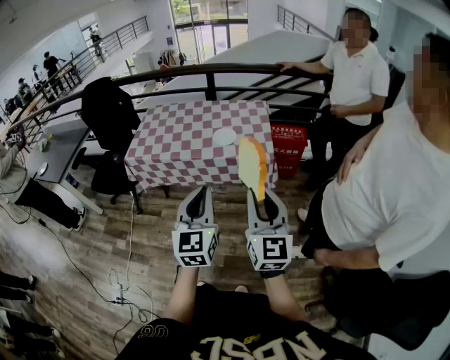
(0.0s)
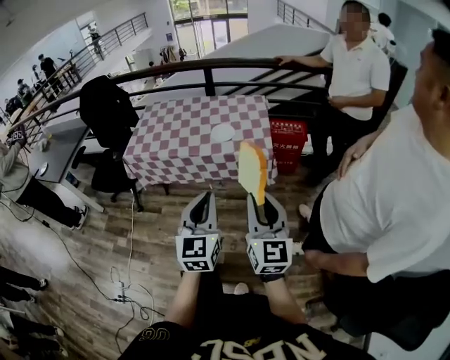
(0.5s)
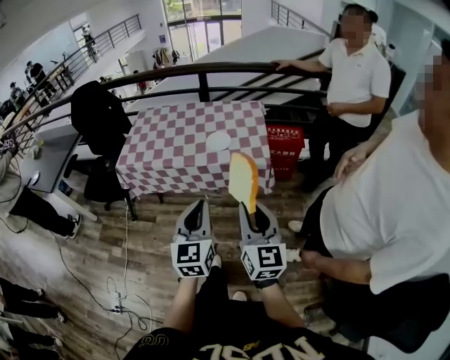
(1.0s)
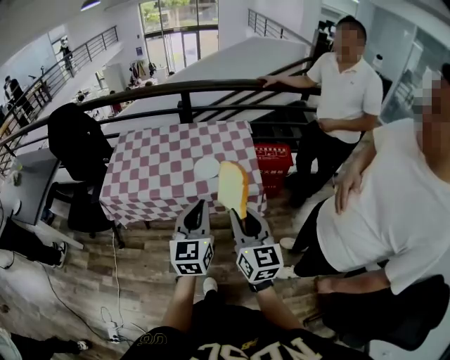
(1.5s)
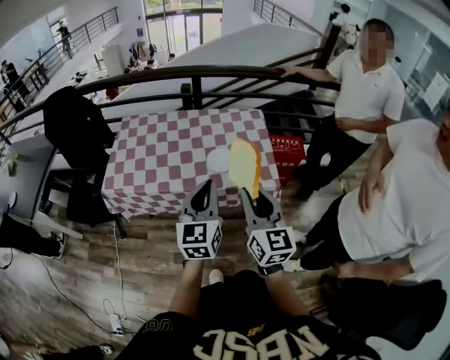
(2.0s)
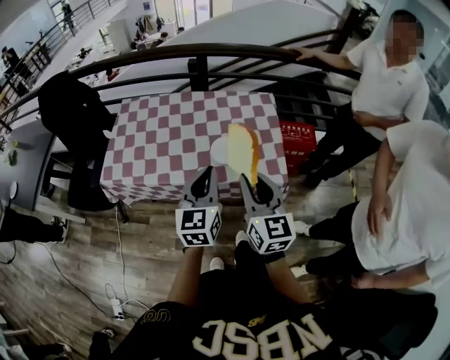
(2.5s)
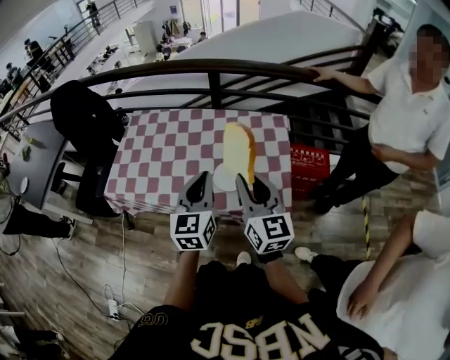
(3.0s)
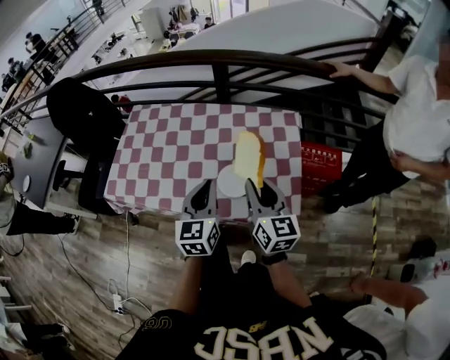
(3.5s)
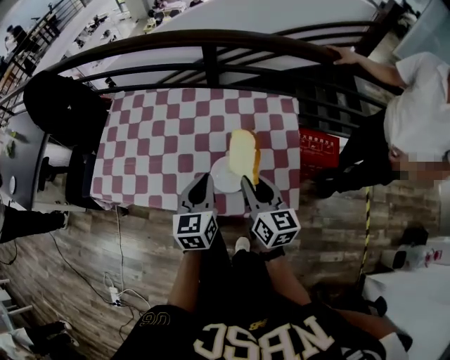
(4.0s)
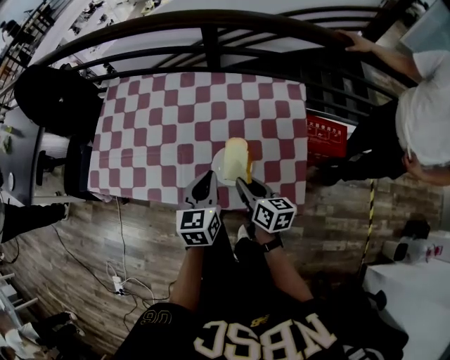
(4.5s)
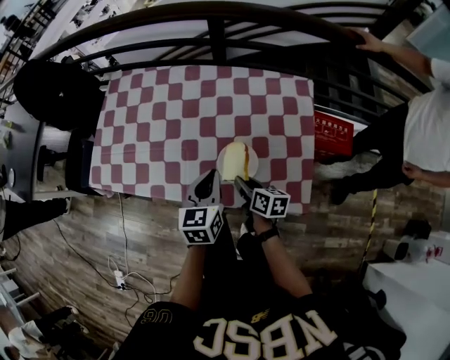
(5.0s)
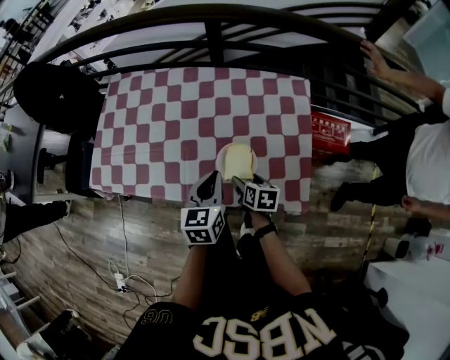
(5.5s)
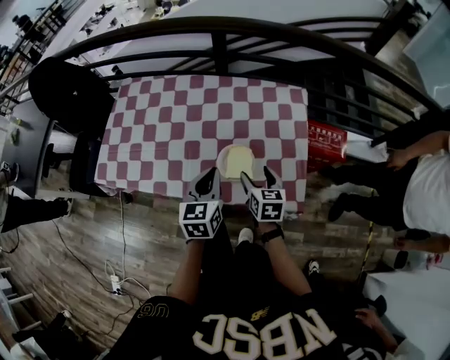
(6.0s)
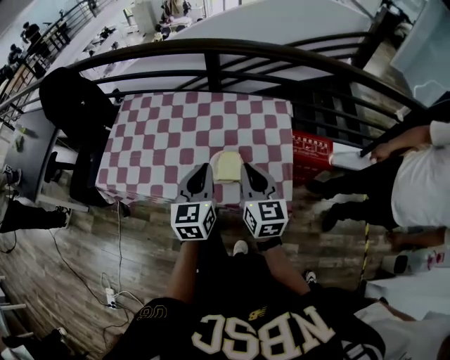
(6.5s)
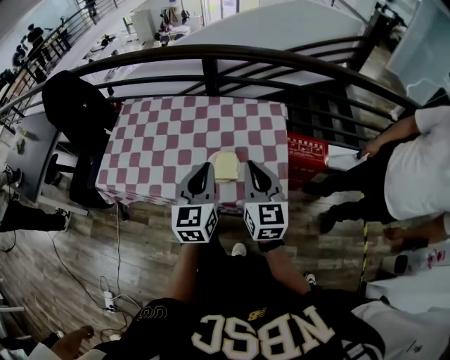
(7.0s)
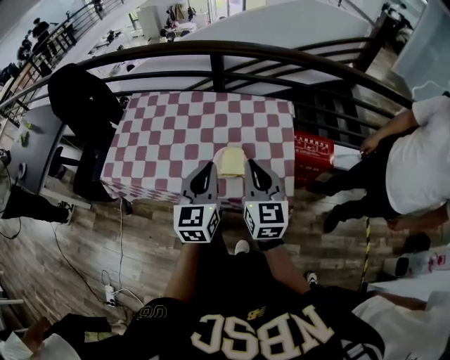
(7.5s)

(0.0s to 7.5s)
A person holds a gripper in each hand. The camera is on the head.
0.0s - 2.0s: The two grippers go some 25 cm forward.
2.0s - 4.0s: The grippers both shift forward and downward by approximately 30 cm. The right gripper swivels about 30 degrees. Meanwhile the left gripper turns by some 20 degrees.
4.0s - 5.5s: The right gripper travels downward by some 25 cm, points its fingers approximately 40 degrees further downward, and opens its fingers, while the left gripper goes some 5 cm downward.
5.5s - 7.5s: The left gripper is displaced upward and backward by approximately 20 cm, and changes its angle by some 20 degrees; the right gripper heads upward, covering some 30 cm, angles its fingers upward, by about 40 degrees, and closes up.

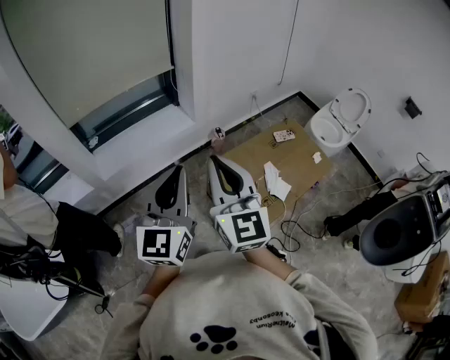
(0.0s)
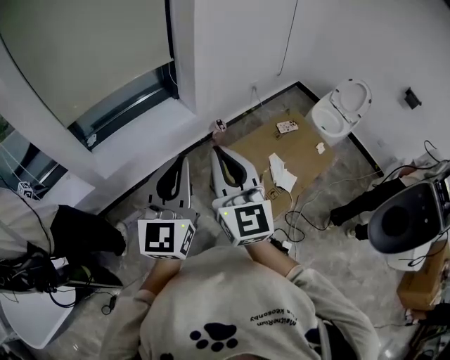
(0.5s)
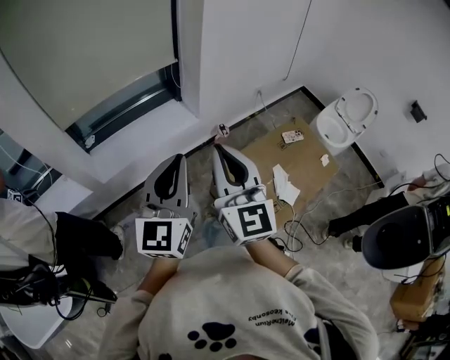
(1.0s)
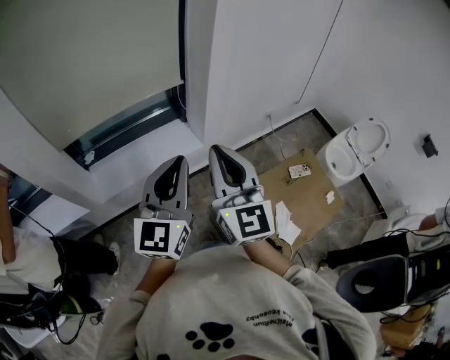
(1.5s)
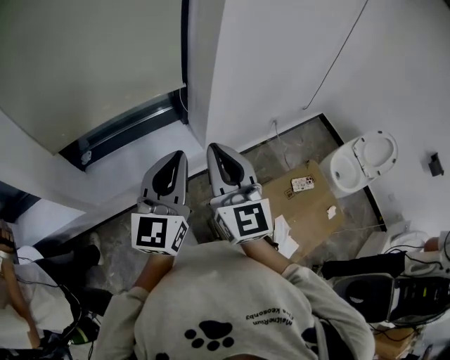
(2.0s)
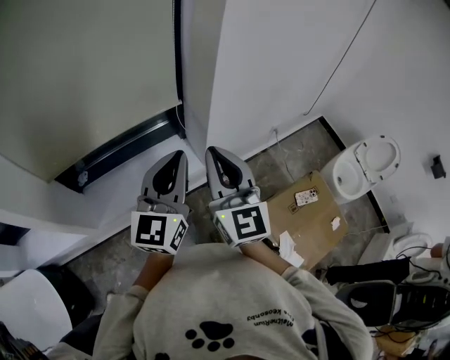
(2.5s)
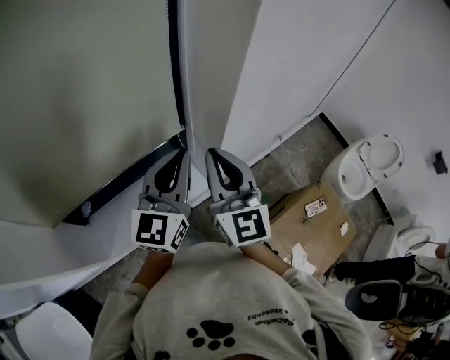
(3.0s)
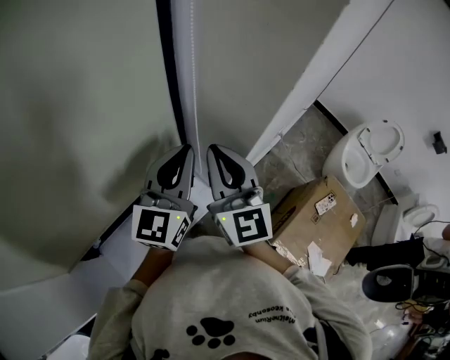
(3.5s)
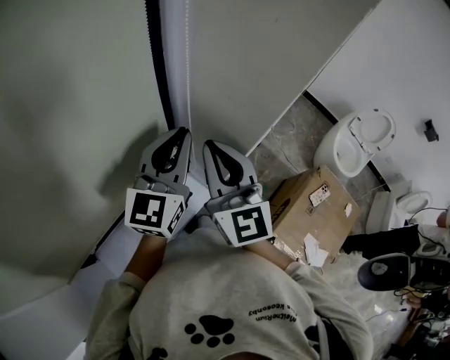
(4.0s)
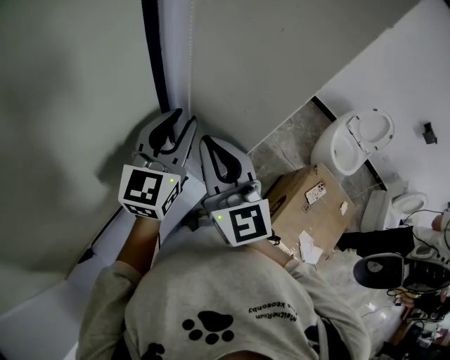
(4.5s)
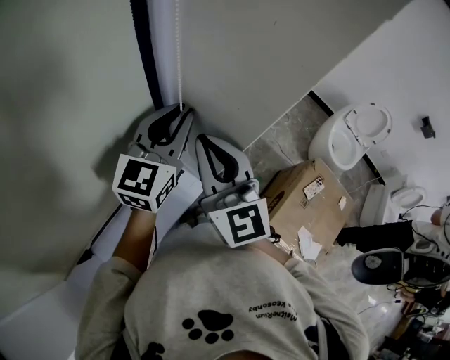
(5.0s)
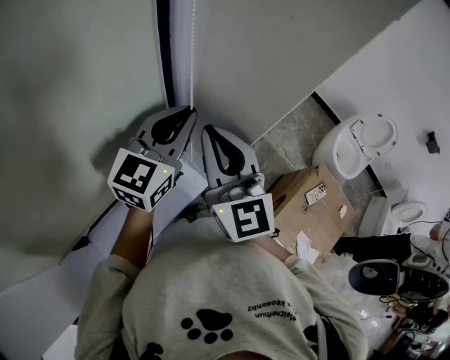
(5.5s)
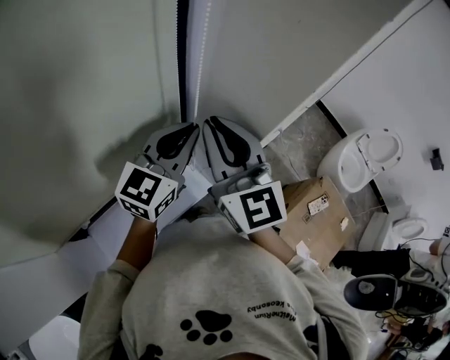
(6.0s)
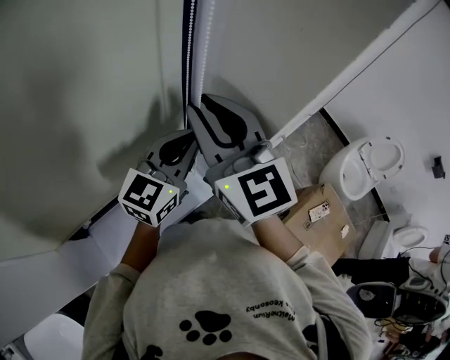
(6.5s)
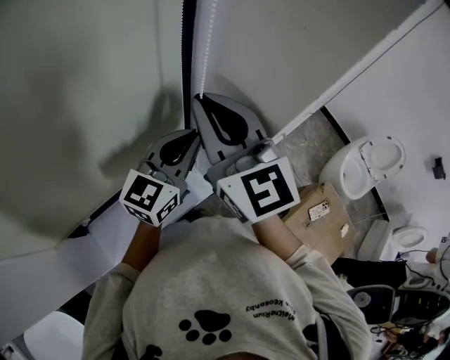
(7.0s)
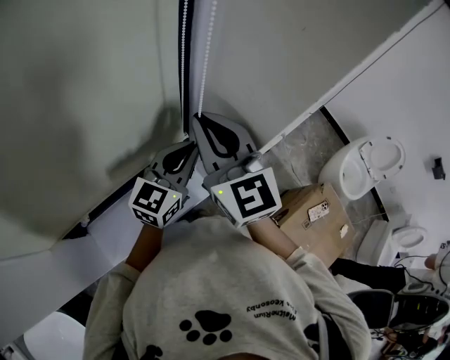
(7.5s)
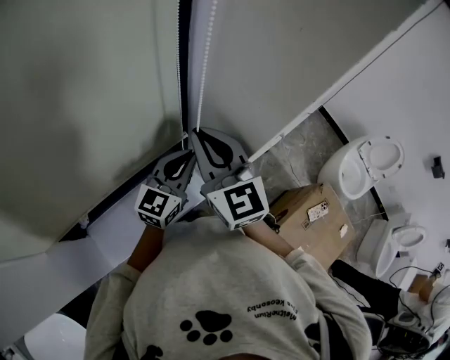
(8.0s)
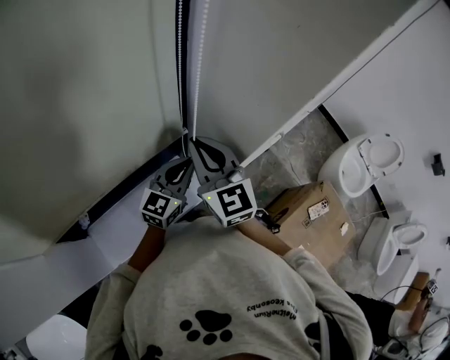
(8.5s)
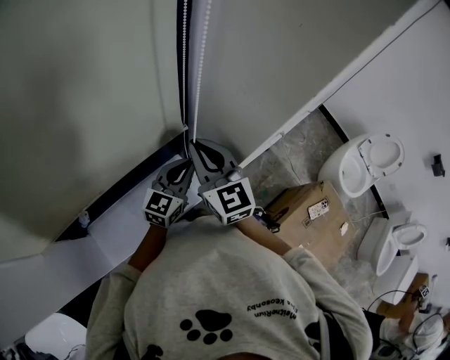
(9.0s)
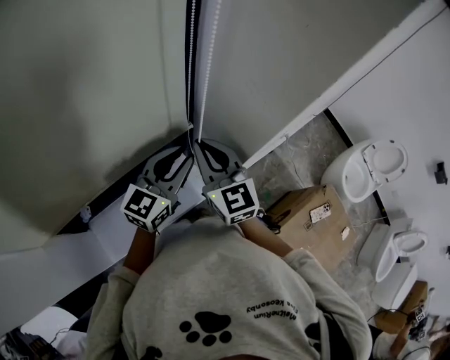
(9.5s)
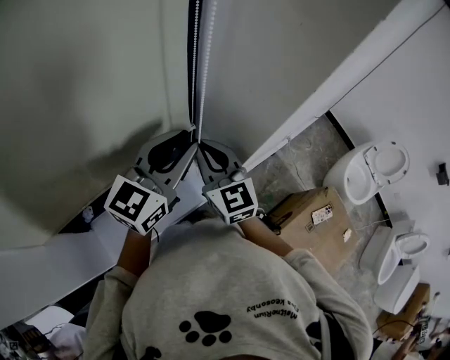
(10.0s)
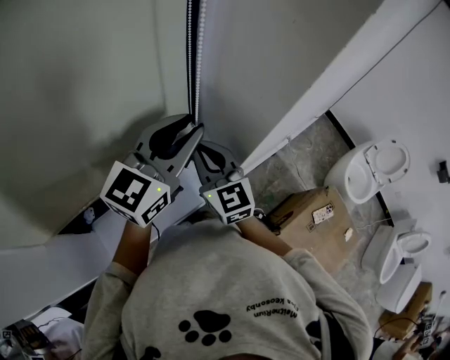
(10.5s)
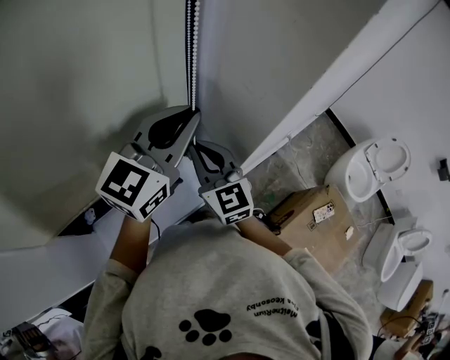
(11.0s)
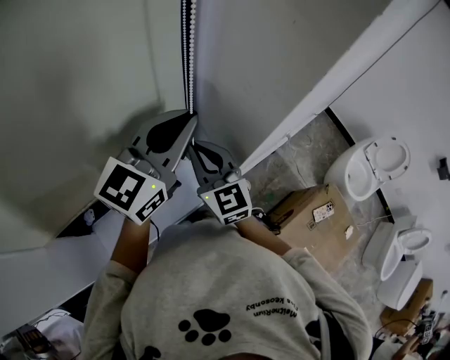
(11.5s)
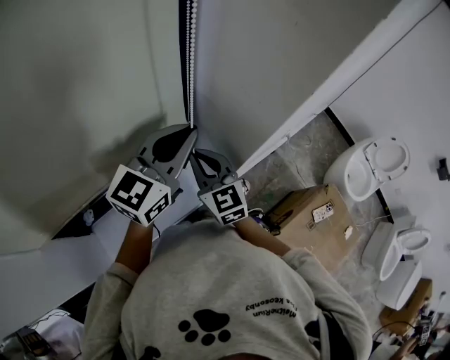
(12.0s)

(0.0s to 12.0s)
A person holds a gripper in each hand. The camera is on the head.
0.0s - 2.0s: Both grippers travel together forward, some 35 cm.
2.0s - 4.0s: Both grippers move forward, approximately 40 cm. The left gripper swivels roughly 30 degrees.
4.0s - 6.0s: The left gripper opens and closes again. The right gripper ends up roughly 5 cm from where it was.
6.0s - 8.0s: The left gripper moves downward, some 10 cm; the right gripper travels downward by some 5 cm.
8.0s - 10.0s: The left gripper heads upward, covering roughly 15 cm; the right gripper shifts roughly 5 cm downward.
10.0s - 12.0s: The left gripper closes up; the right gripper is displaced downward by about 5 cm.

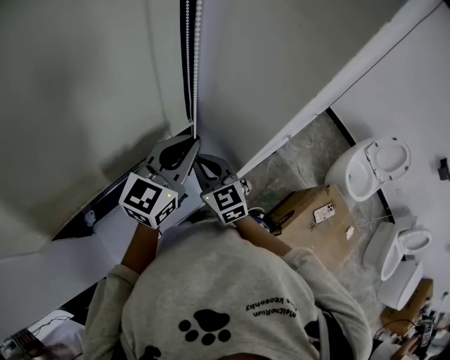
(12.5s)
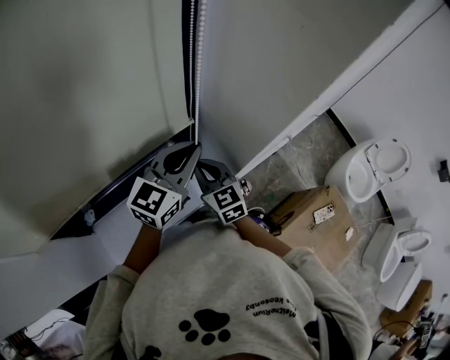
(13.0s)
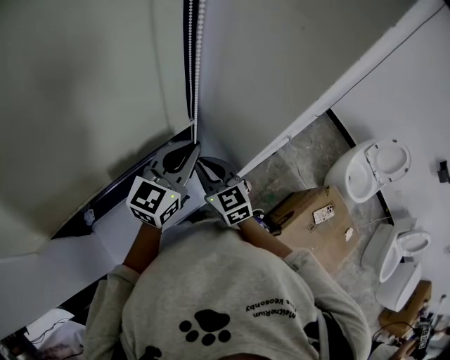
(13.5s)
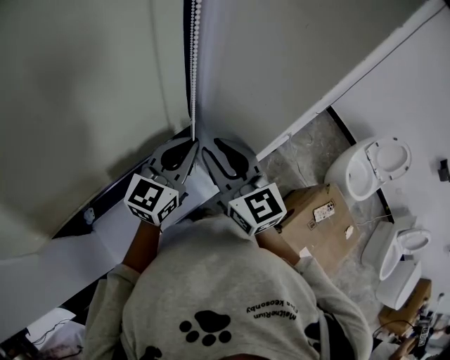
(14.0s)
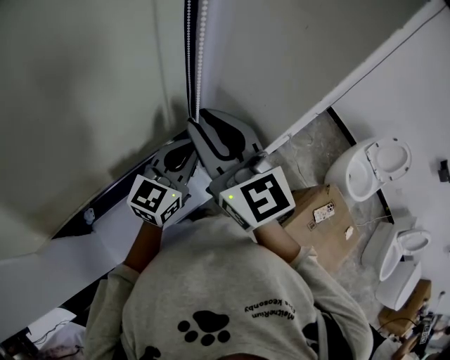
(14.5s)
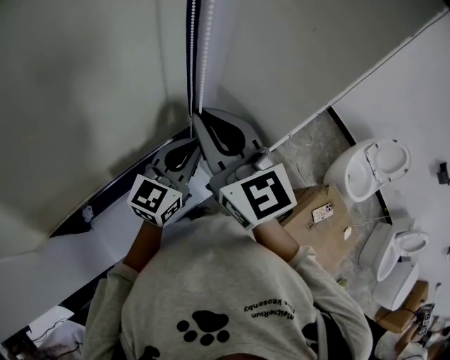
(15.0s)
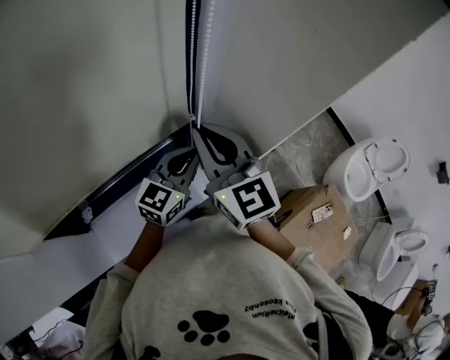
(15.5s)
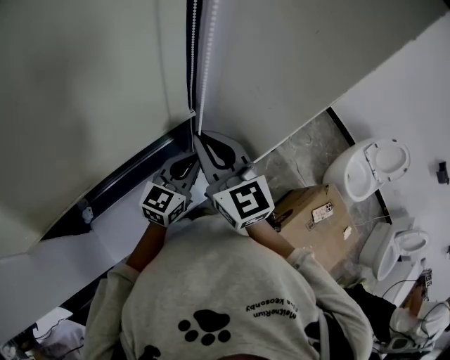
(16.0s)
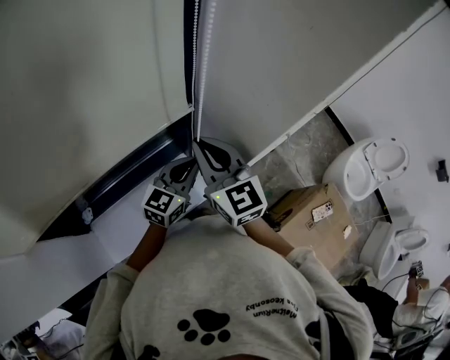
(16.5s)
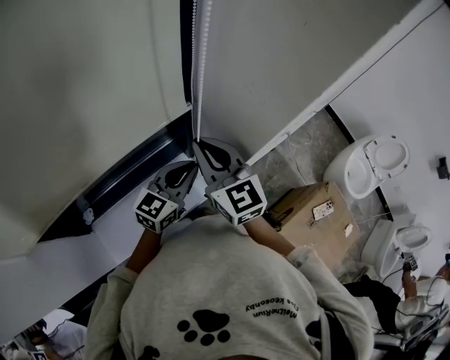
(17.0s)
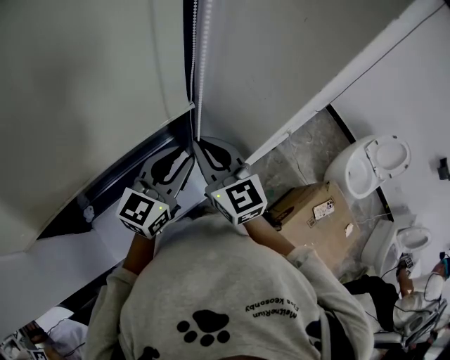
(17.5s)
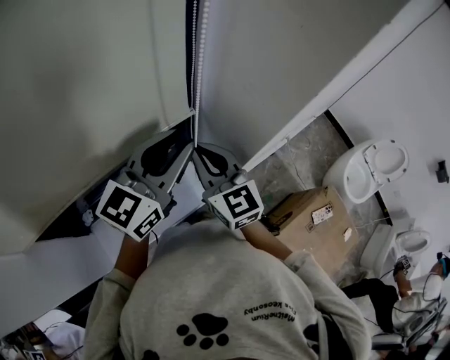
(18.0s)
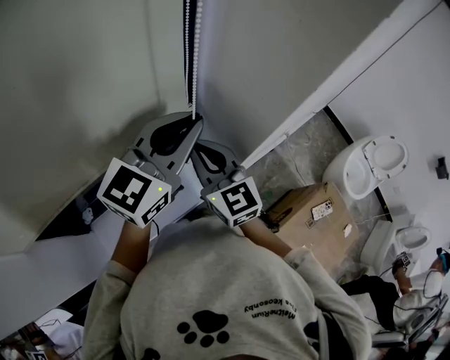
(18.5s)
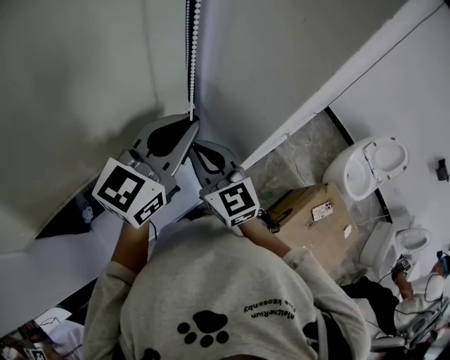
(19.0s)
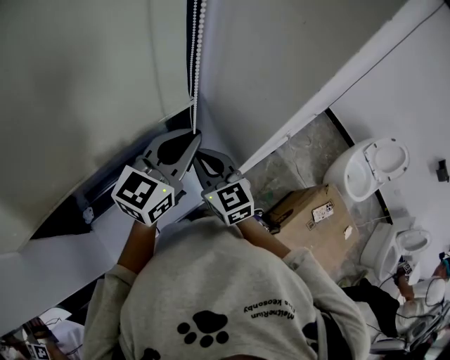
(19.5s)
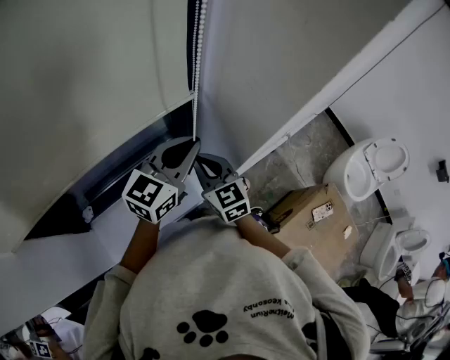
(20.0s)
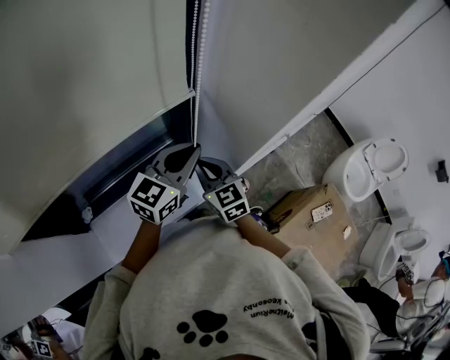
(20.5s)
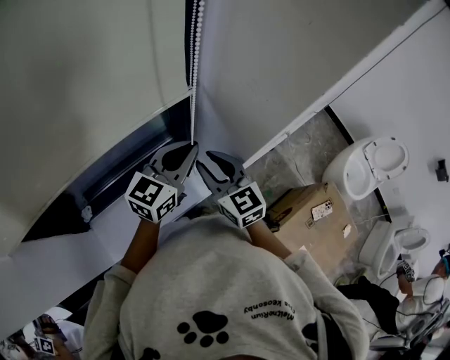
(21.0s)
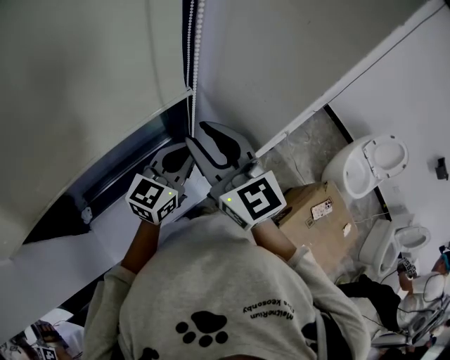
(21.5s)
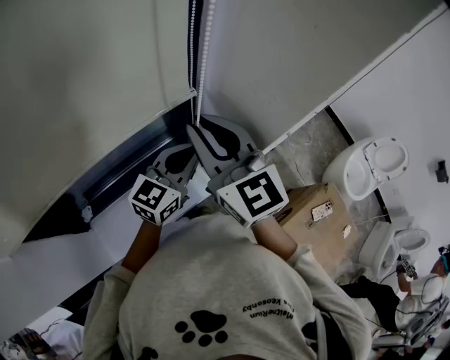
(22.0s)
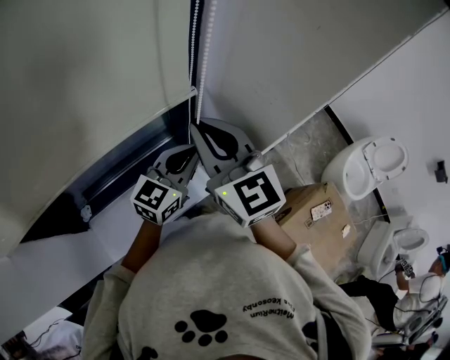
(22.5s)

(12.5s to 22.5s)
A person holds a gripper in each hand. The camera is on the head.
12.5s - 14.5s: The right gripper heads upward, covering some 25 cm.
14.5s - 16.5s: Both grippers travel together downward, some 10 cm.
16.5s - 18.5s: The left gripper goes some 20 cm upward.
18.5s - 20.5s: The grippers both shift downward by some 15 cm.
20.5s - 22.5s: The right gripper shifts approximately 20 cm upward, and opens, then closes again.
